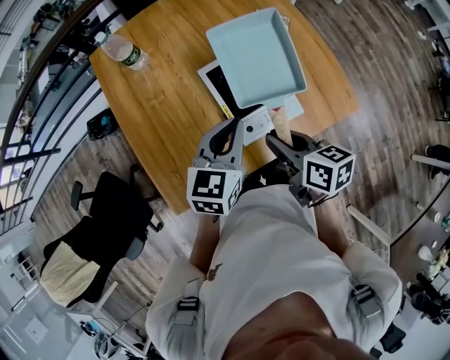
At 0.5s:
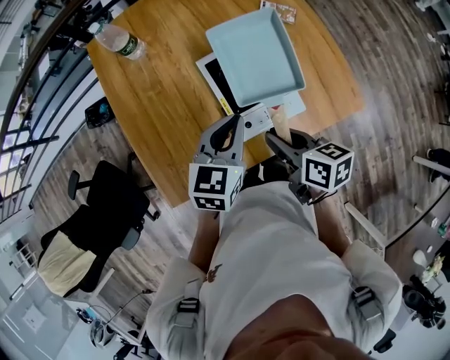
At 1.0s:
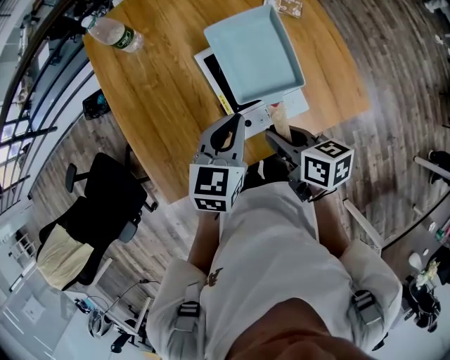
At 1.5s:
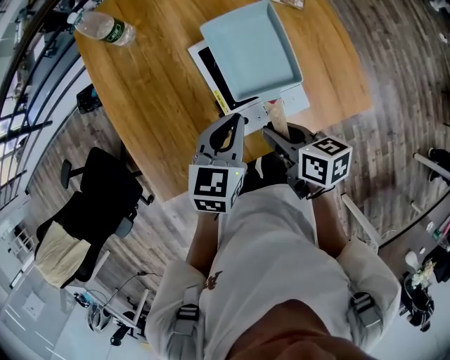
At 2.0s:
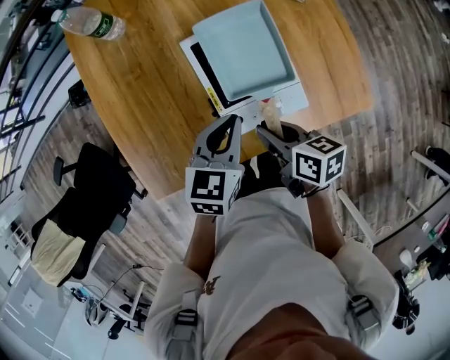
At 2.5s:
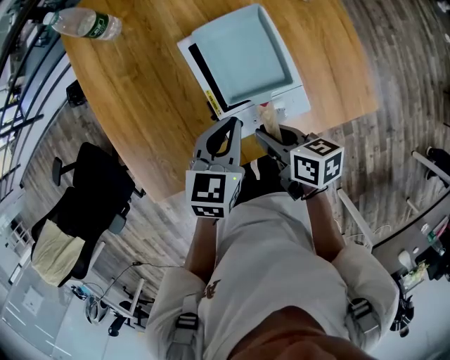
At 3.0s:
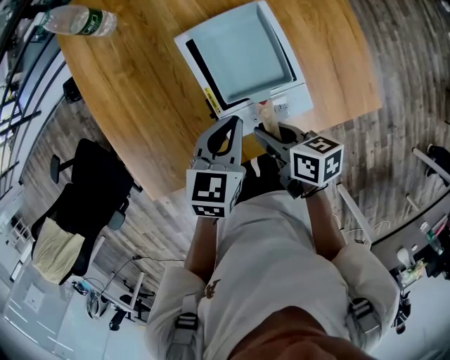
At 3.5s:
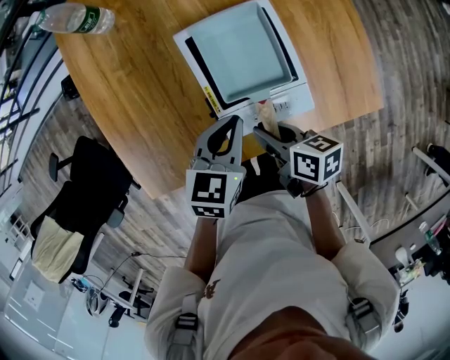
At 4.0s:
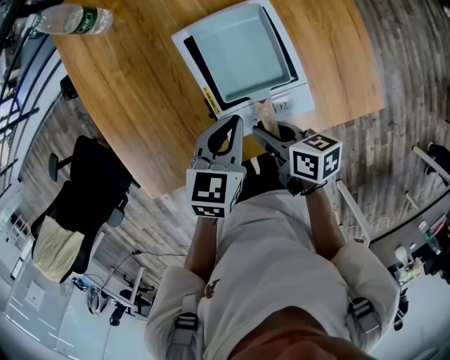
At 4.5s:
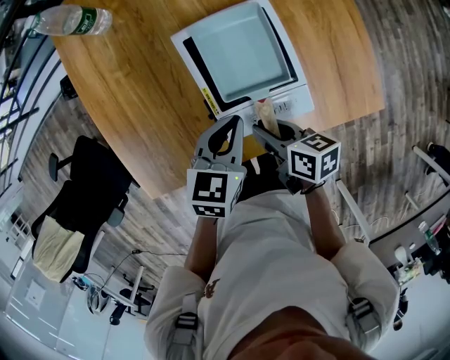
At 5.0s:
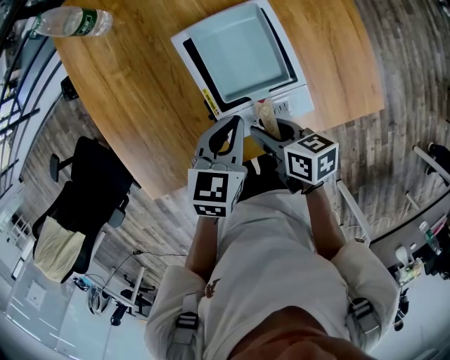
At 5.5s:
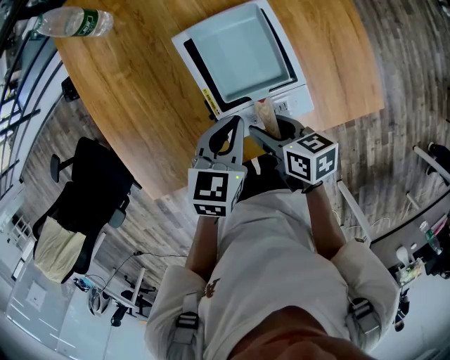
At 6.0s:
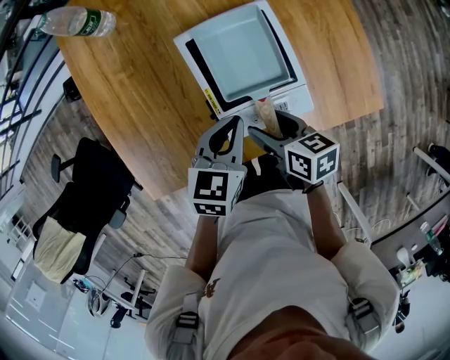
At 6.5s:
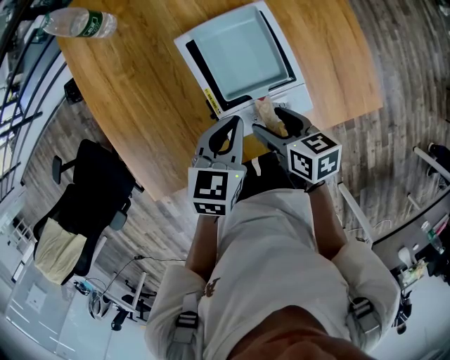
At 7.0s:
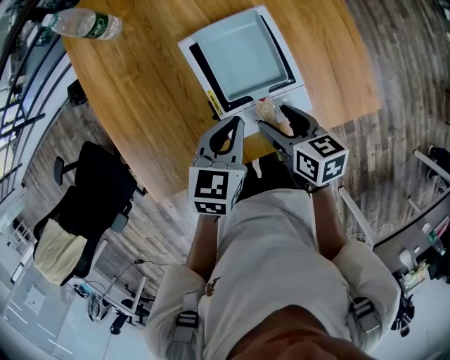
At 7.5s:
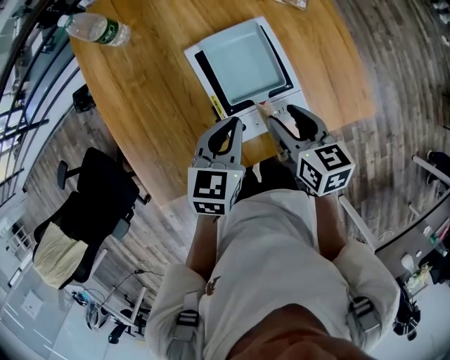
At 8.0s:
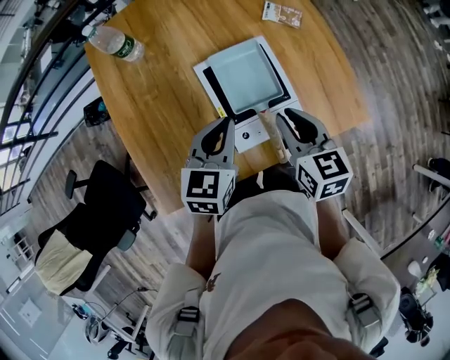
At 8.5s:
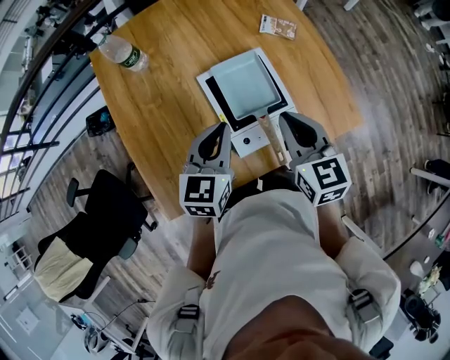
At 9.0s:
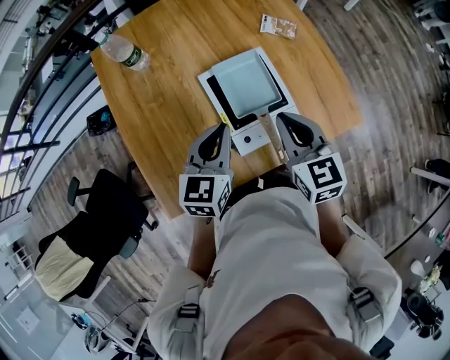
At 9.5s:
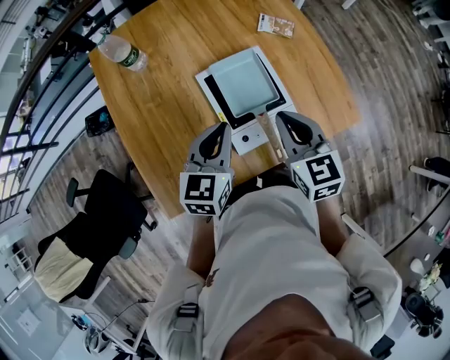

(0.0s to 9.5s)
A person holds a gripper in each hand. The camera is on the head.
0.0s - 2.0s: The grippers both shift downward by about 10 cm.
2.0s - 4.0s: The right gripper heads downward, covering about 5 cm.
4.0s - 5.5s: The right gripper opens its fingers.
5.5s - 7.5s: The right gripper shifts about 10 cm upward, and rotates roughly 20 degrees.
7.5s - 9.5s: The two grippers go approximately 10 cm upward. The right gripper rotates approximately 20 degrees, and closes up.

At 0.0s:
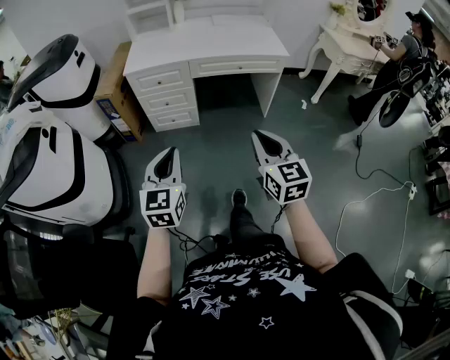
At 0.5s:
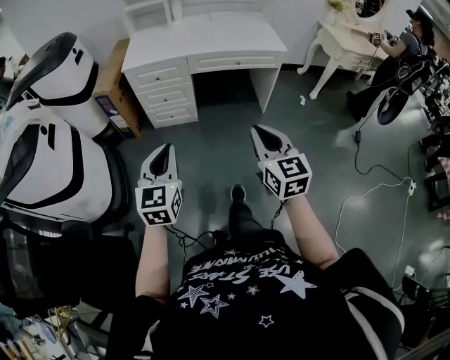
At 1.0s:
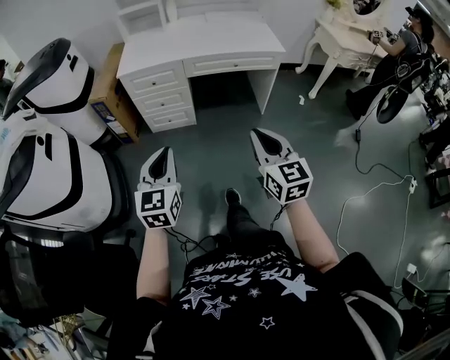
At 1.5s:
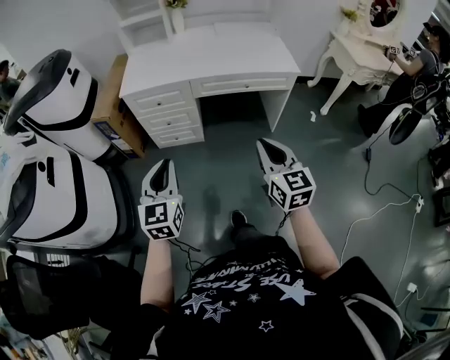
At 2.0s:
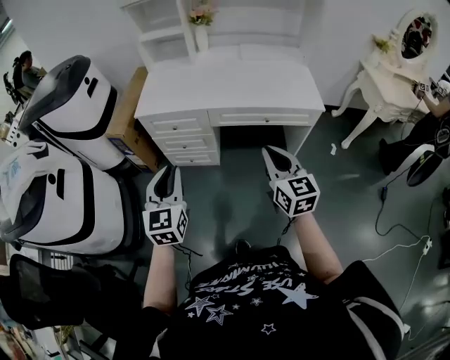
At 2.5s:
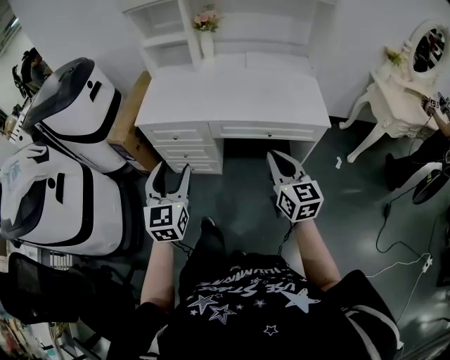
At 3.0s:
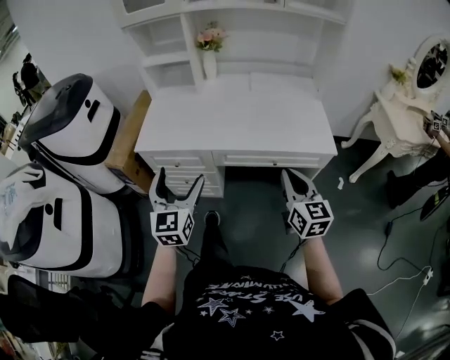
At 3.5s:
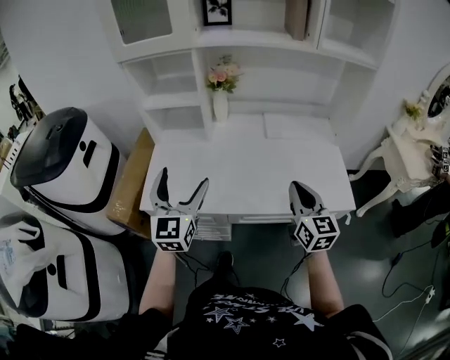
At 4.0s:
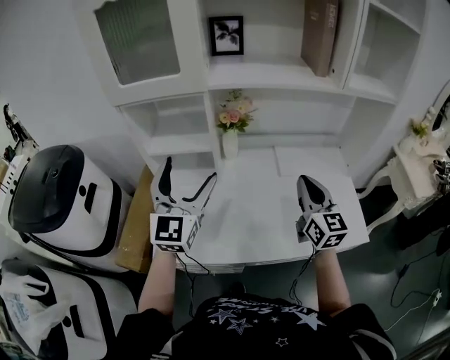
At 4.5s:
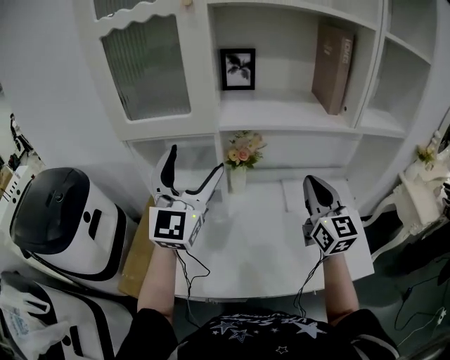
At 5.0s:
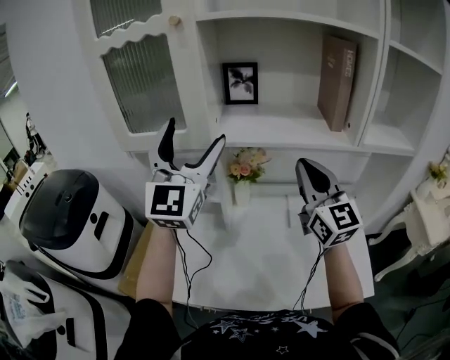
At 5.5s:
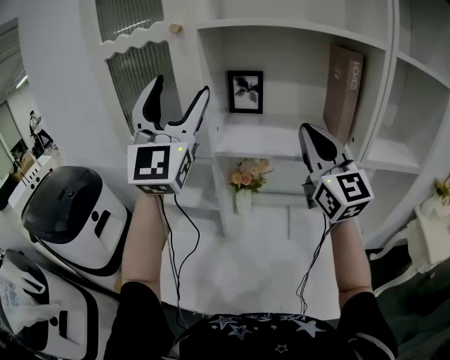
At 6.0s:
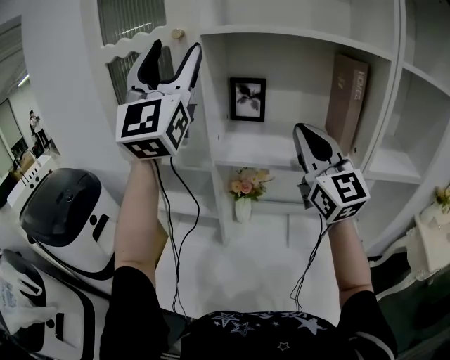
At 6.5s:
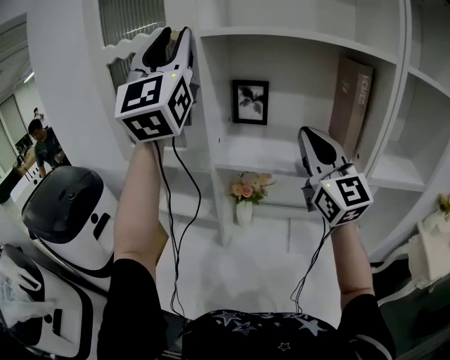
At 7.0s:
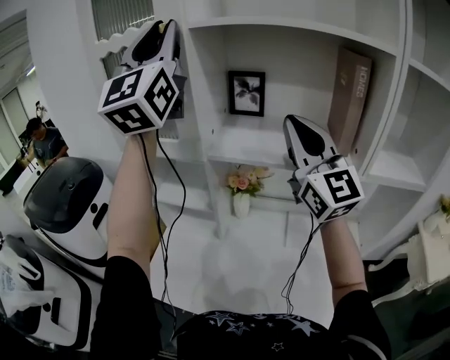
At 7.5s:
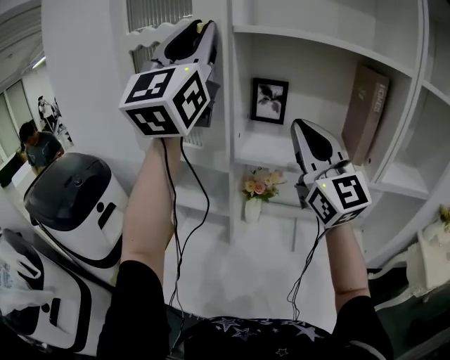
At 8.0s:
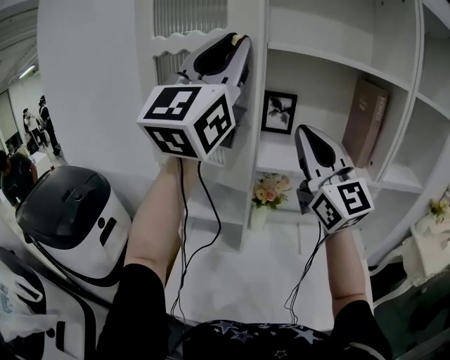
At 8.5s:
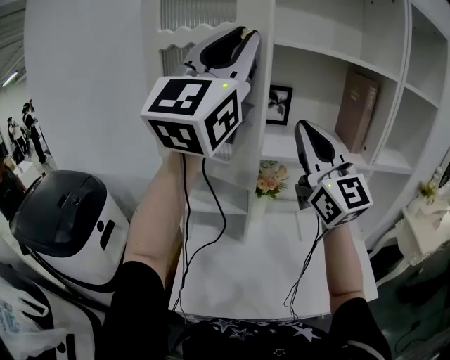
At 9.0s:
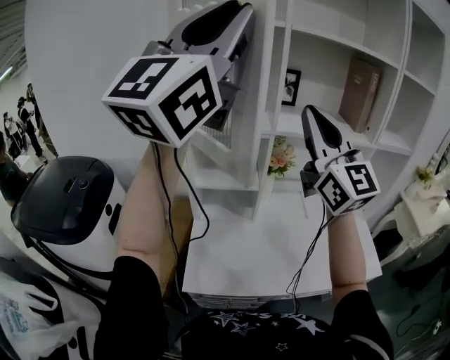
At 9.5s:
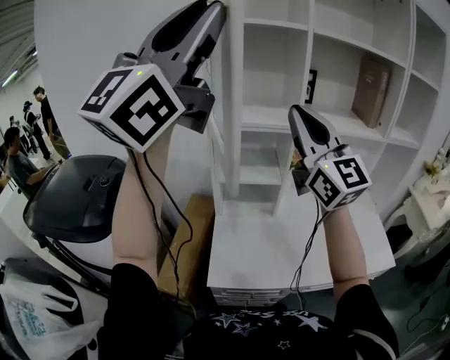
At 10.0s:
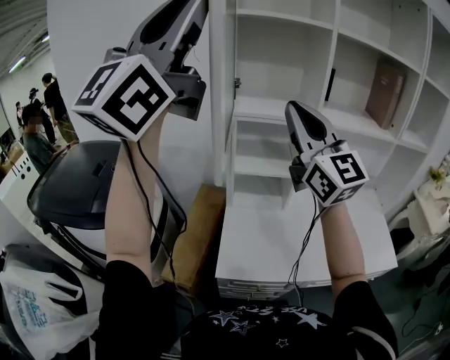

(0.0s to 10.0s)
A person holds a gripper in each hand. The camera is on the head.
0.0s - 2.0s: Both grippers move forward, about 30 cm.
2.0s - 4.0s: The pair of grippers is taken forward, about 50 cm. The left gripper turns by roughly 30 degrees, and opens its fingers.
4.0s - 6.0s: The left gripper is displaced upward by about 40 cm, and tilts its fingers about 30 degrees upward, while the right gripper is displaced upward and forward by some 35 cm, and swivels roughly 30 degrees.
6.0s - 8.0s: The right gripper travels to the left by approximately 15 cm. The left gripper travels backward by some 5 cm, turns by roughly 20 degrees, and closes its fingers.
8.0s - 10.0s: Both grippers move to the left and backward, approximately 30 cm.

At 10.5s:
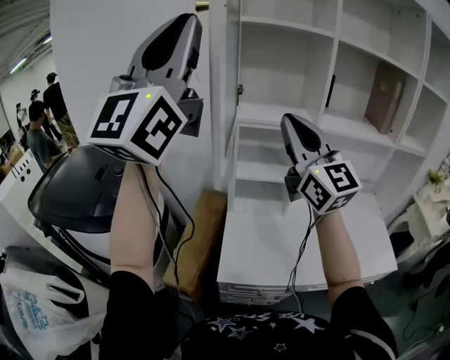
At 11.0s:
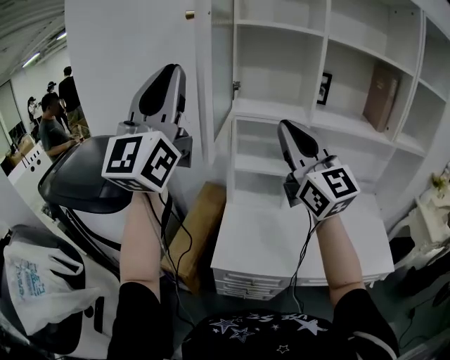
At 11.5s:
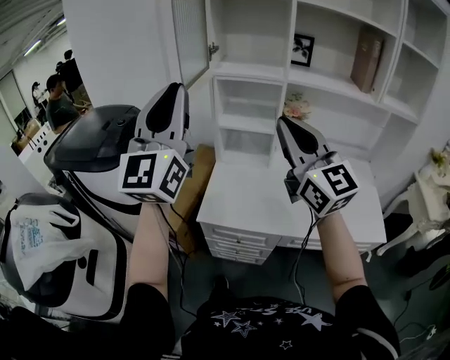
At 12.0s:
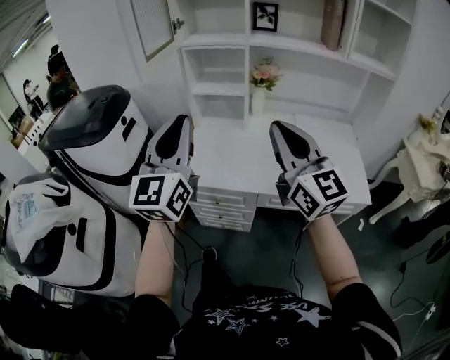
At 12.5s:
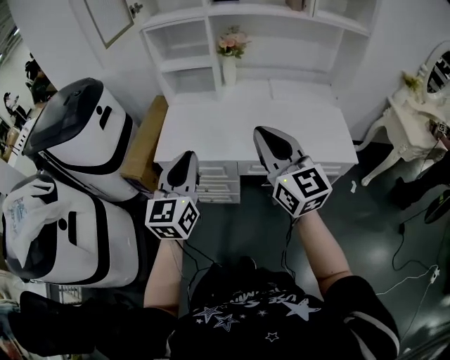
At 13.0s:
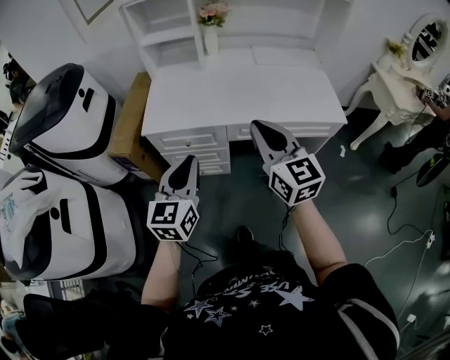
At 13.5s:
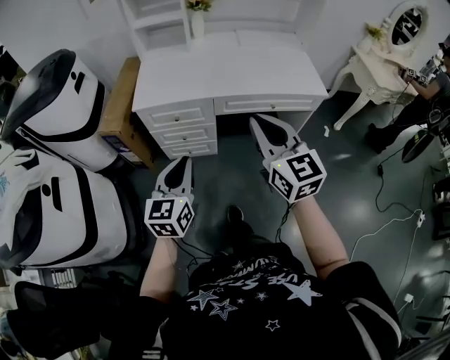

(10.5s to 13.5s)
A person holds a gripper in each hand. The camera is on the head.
10.5s - 12.0s: The right gripper is displaced backward, to the right and downward by approximately 40 cm, while the left gripper travels downward, backward and to the right by about 40 cm, and turns by about 30 degrees.
12.0s - 13.5s: The right gripper goes some 30 cm backward and downward, and changes its angle by roughly 20 degrees. The left gripper is displaced downward and backward by roughly 40 cm, and points its fingers some 30 degrees further downward.

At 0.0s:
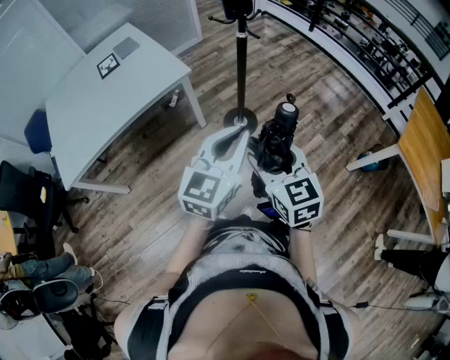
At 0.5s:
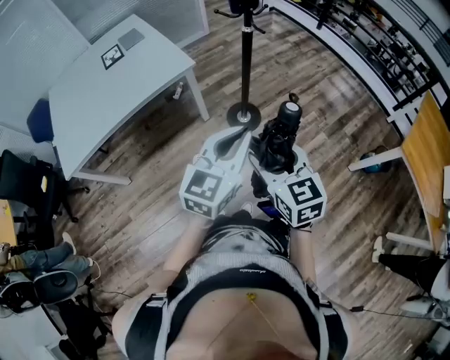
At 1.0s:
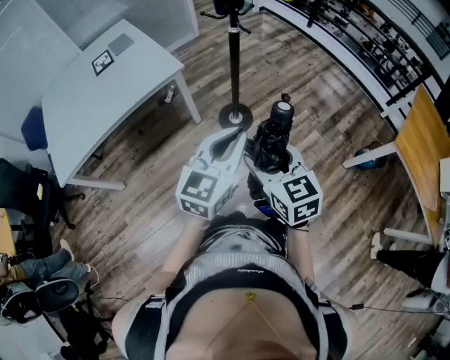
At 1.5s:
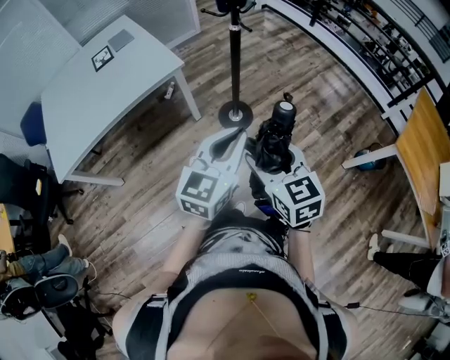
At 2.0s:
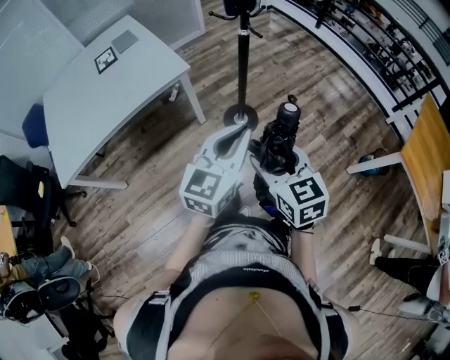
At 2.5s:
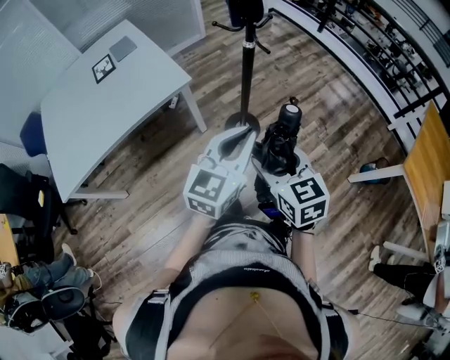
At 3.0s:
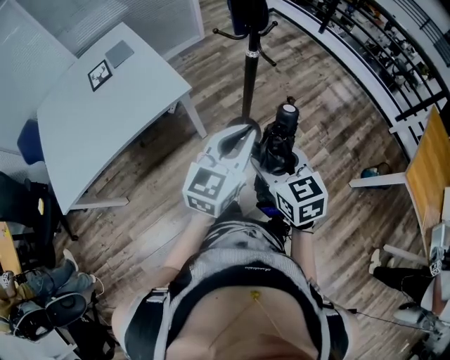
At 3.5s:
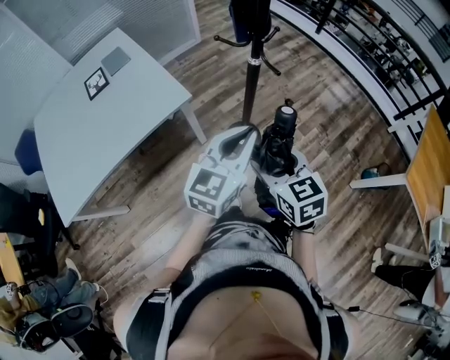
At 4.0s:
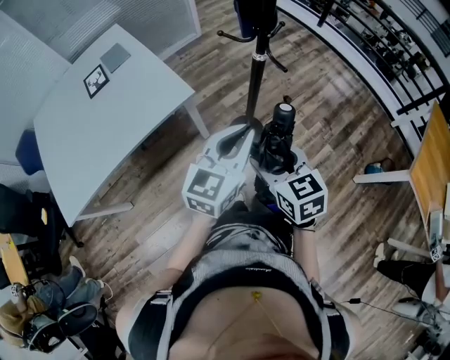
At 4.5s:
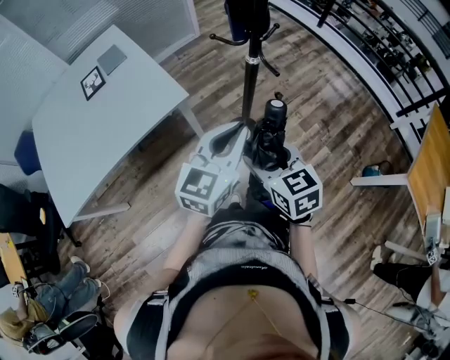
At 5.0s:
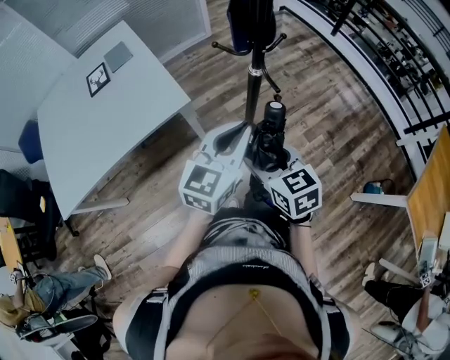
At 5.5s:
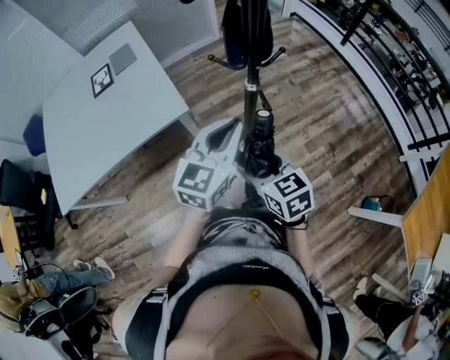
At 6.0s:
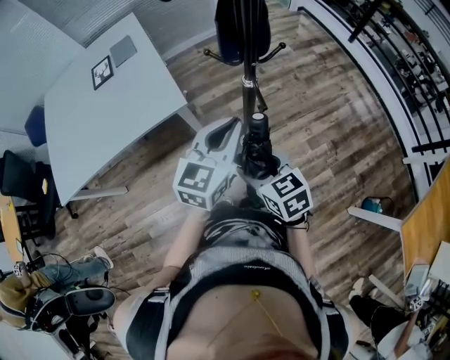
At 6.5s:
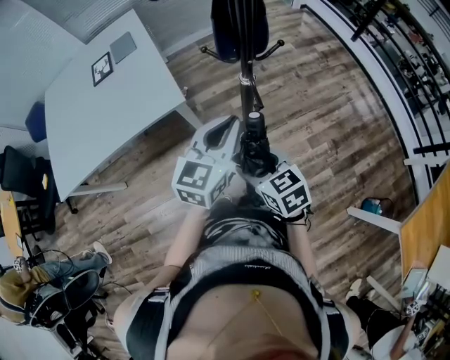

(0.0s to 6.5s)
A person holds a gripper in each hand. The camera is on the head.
0.0s - 2.0s: The left gripper heads forward, covering approximately 5 cm.
2.0s - 4.5s: Both grippers travel together forward, about 20 cm.
4.5s - 6.5s: The left gripper goes some 15 cm forward and to the right, while the right gripper is displaced to the right, forward and downward by approximately 10 cm, and changes its angle by some 20 degrees.
